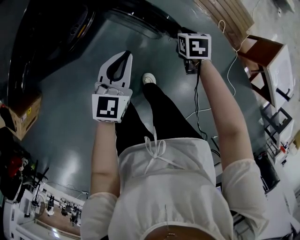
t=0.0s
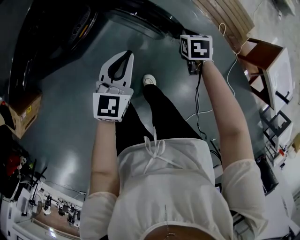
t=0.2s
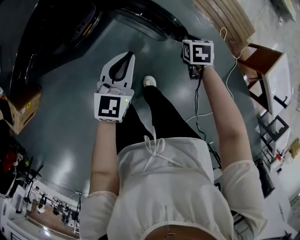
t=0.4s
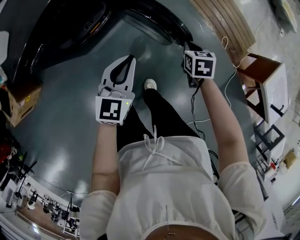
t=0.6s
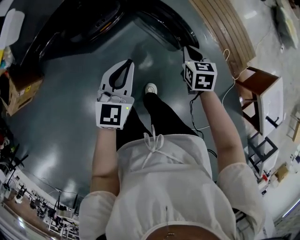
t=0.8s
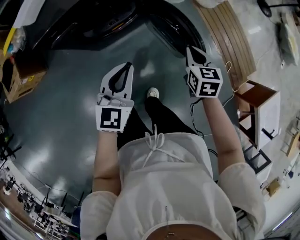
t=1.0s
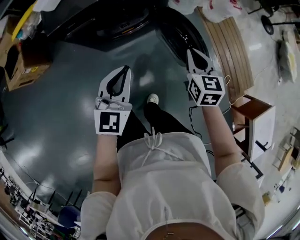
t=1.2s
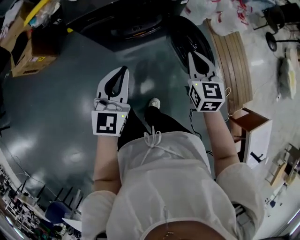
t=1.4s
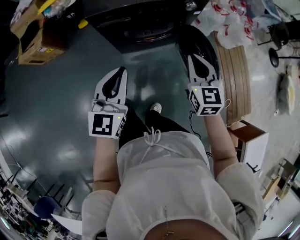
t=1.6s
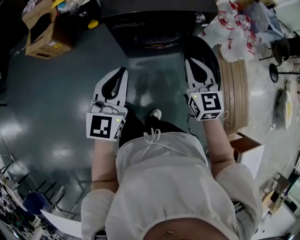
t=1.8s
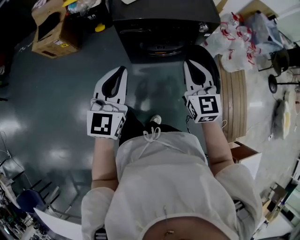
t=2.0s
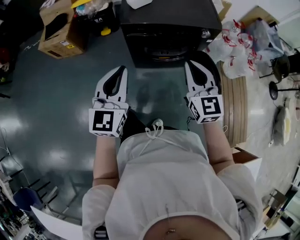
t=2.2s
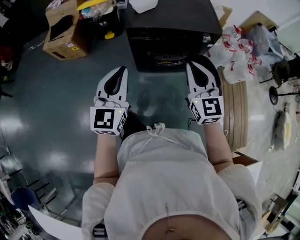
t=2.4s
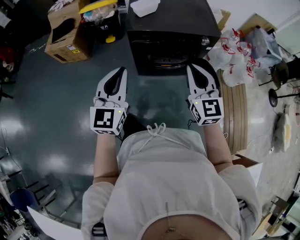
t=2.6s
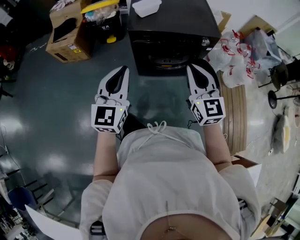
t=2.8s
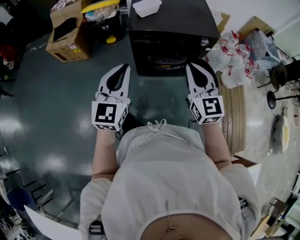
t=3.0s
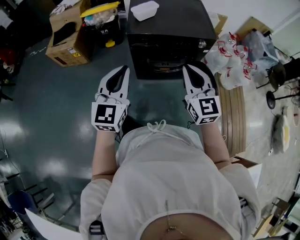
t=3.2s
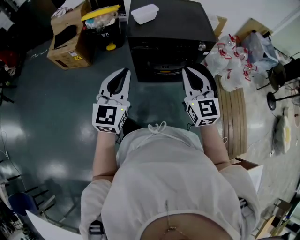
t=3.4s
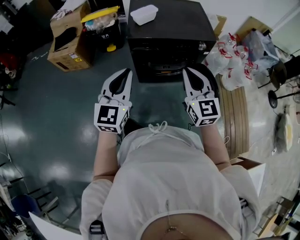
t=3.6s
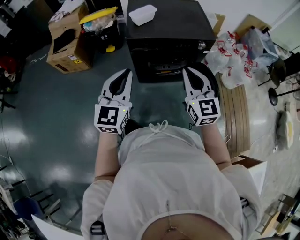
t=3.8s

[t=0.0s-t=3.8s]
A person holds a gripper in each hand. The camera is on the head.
t=0.0s to t=1.2s: The right gripper heads upward and to the left, covering roughly 30 cm, and tips its fingers upward by some 30 degrees. The left gripper goes roughly 25 cm to the left, upward and backward, and rotates roughly 30 degrees.
t=1.2s to t=2.6s: The right gripper is displaced upward by approximately 25 cm, and rotates some 40 degrees. The left gripper shifts by some 30 cm, and rotates some 30 degrees.
t=2.6s to t=3.8s: There are only small adjustments of the grippers.

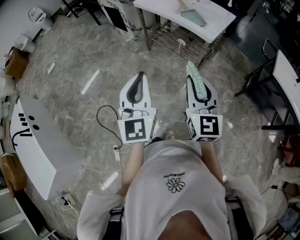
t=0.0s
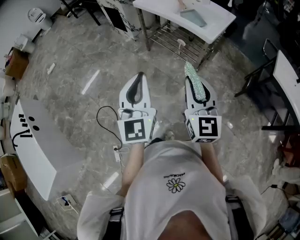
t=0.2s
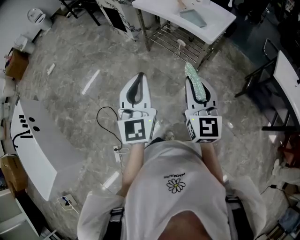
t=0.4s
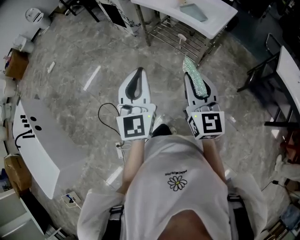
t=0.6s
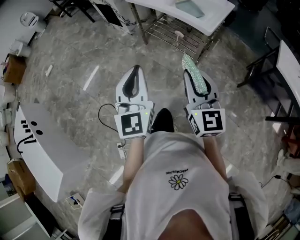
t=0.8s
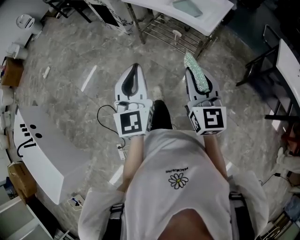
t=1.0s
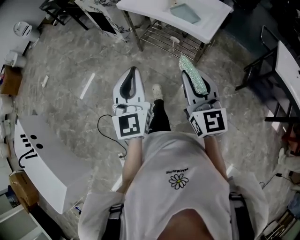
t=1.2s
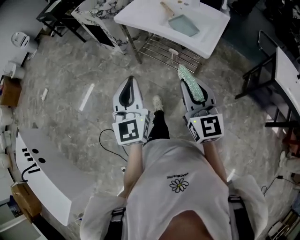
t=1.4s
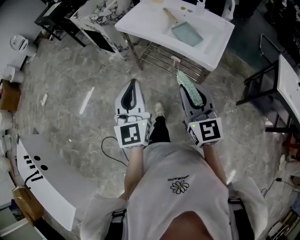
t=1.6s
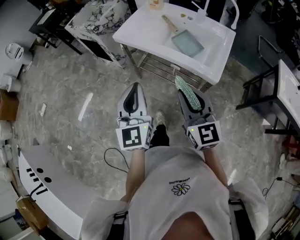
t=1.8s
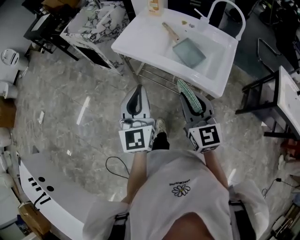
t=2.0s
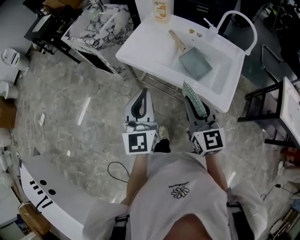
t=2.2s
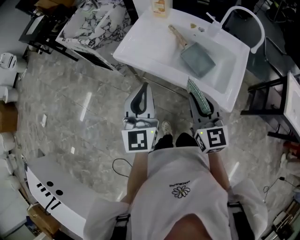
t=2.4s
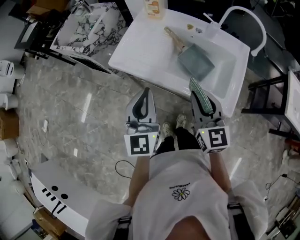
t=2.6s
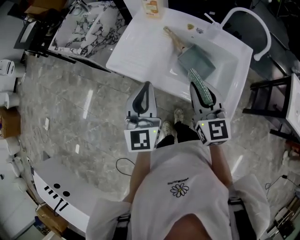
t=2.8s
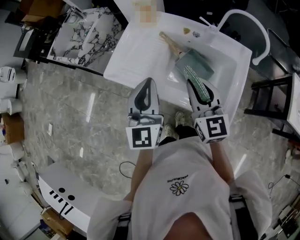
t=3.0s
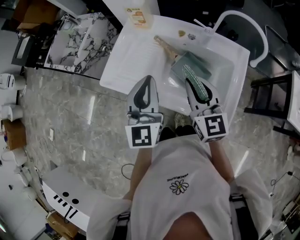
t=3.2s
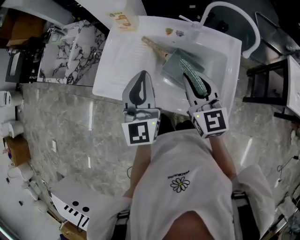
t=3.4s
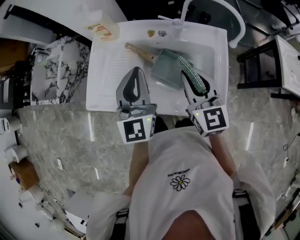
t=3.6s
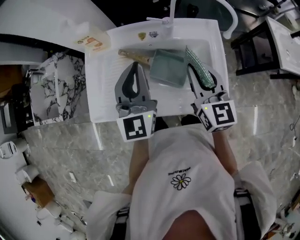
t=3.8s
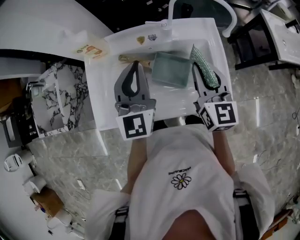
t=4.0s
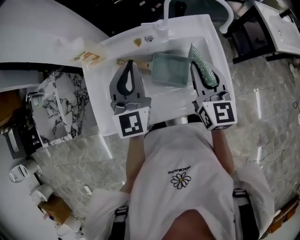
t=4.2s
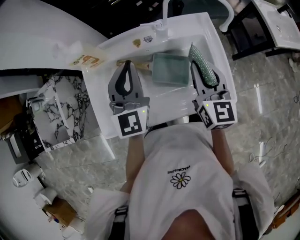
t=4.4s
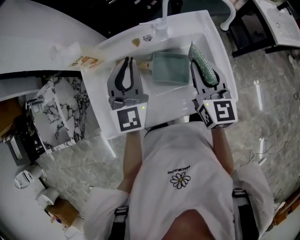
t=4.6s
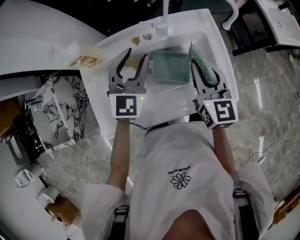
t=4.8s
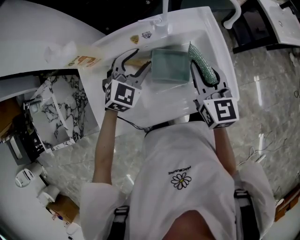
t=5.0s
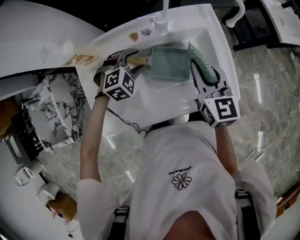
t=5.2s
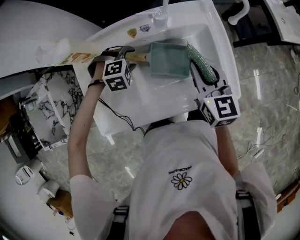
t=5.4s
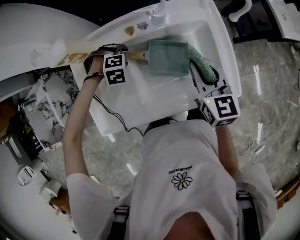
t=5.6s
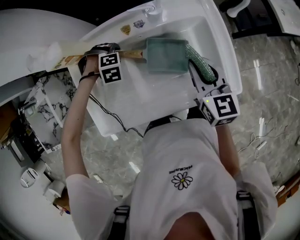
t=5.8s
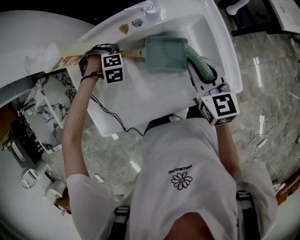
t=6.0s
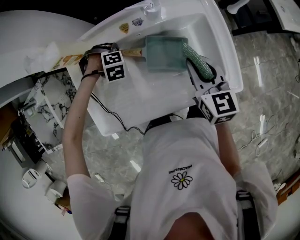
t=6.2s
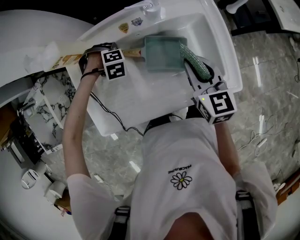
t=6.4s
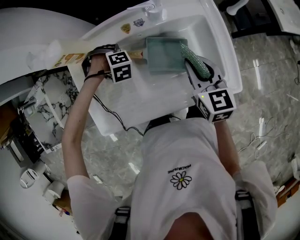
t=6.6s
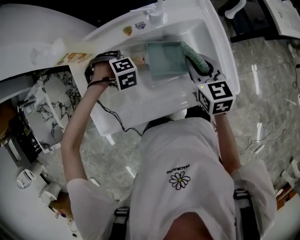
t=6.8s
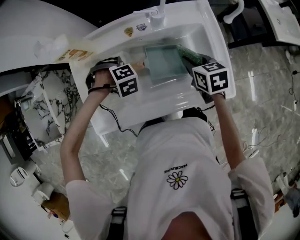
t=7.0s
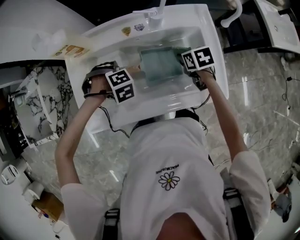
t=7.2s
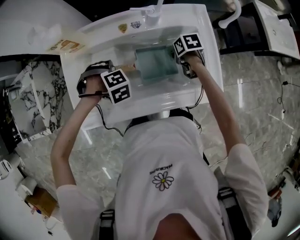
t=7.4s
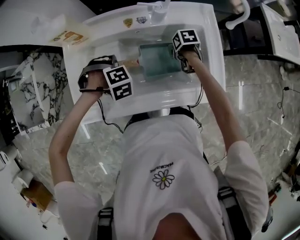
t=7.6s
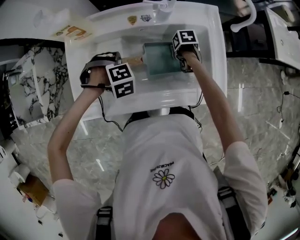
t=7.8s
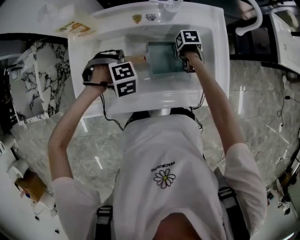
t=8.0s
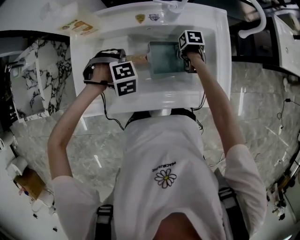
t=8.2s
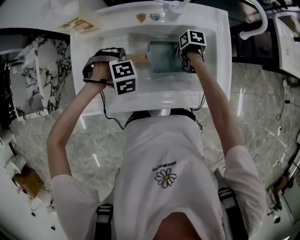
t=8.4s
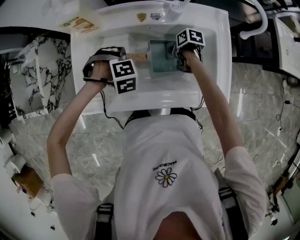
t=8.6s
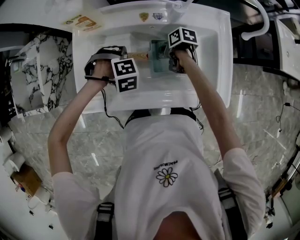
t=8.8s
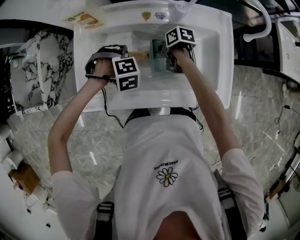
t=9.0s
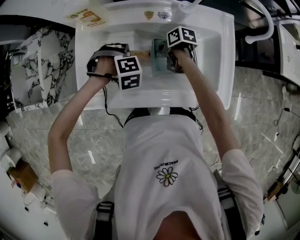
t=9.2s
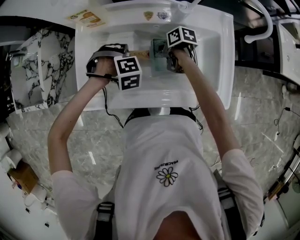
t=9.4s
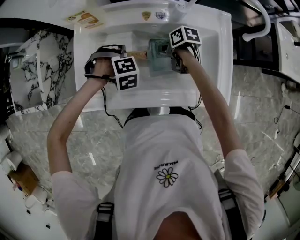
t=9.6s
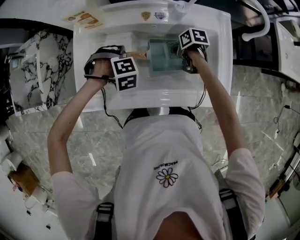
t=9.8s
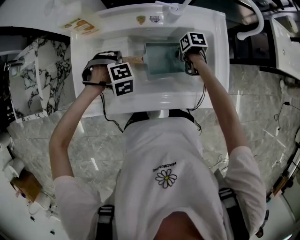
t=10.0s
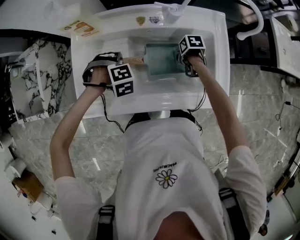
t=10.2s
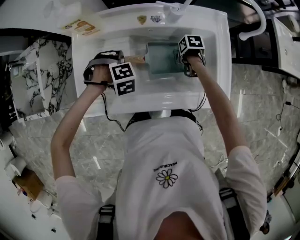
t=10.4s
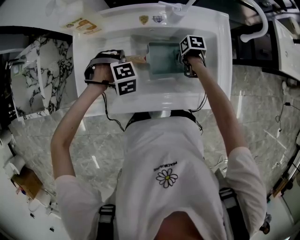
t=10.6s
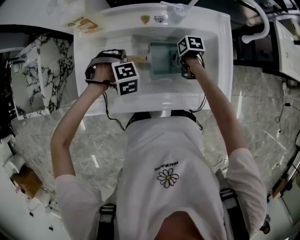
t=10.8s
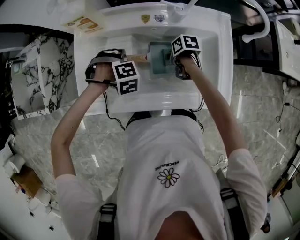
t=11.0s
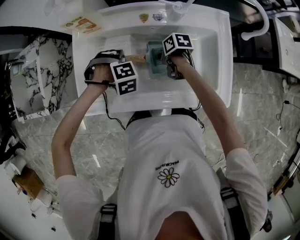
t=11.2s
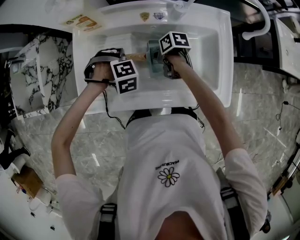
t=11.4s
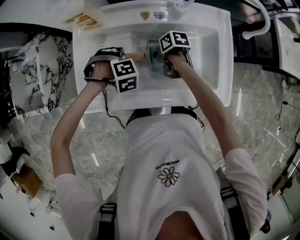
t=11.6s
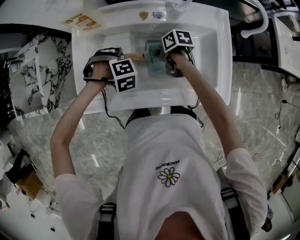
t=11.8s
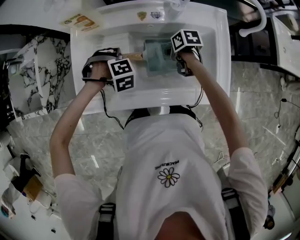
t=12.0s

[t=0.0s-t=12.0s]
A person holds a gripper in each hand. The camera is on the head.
t=0.0s to t=1.6s: Both grippers travel together forward, about 30 cm.
t=1.6s to t=3.0s: Both grippers are carried forward, approximately 40 cm.
t=3.0s to t=4.4s: The right gripper ends up about 15 cm from where it was, and turns by roughly 40 degrees; the left gripper changes place by some 20 cm, and swivels approximately 30 degrees.
t=4.4s to t=6.0s: The right gripper is displaced downward by about 10 cm; the left gripper shifts roughly 30 cm downward, angles its fingers downward, by approximately 80 degrees, and opens its fingers.
t=6.0s to t=7.6s: The left gripper changes place by some 10 cm, swivels roughly 20 degrees, and closes its fingers, while the right gripper goes approximately 25 cm downward, and points its fingers some 50 degrees further downward.
t=7.6s to t=9.0s: The right gripper shifts by some 15 cm, and rotates some 20 degrees.
t=9.0s to t=10.4s: The right gripper moves about 15 cm, and turns by roughly 20 degrees.

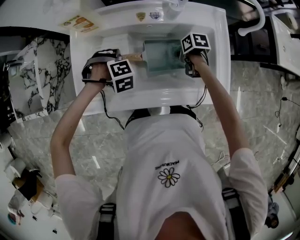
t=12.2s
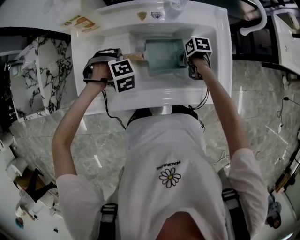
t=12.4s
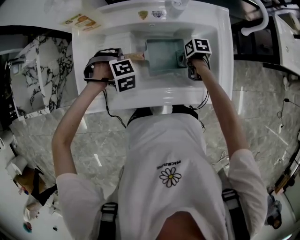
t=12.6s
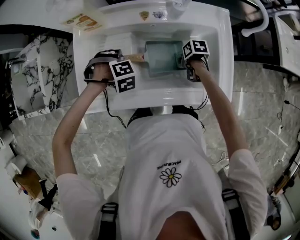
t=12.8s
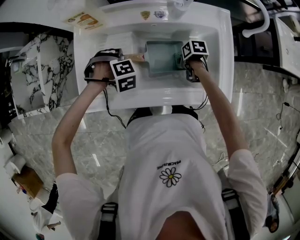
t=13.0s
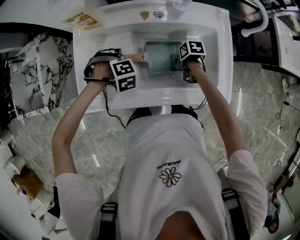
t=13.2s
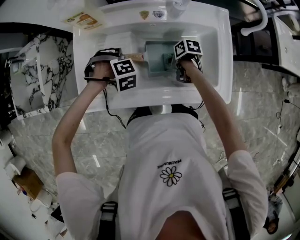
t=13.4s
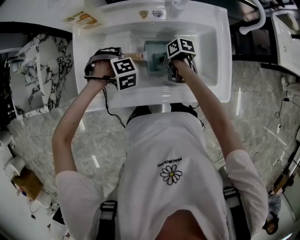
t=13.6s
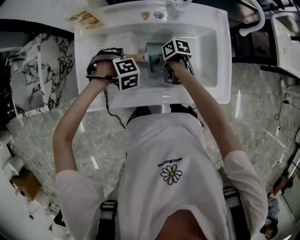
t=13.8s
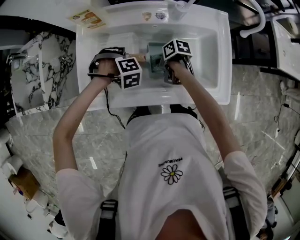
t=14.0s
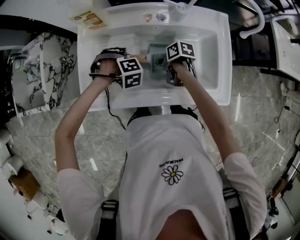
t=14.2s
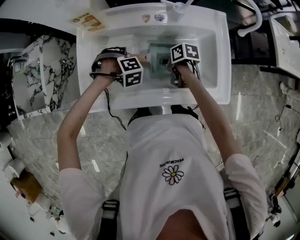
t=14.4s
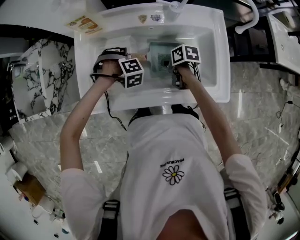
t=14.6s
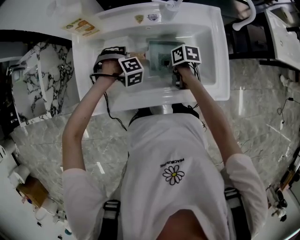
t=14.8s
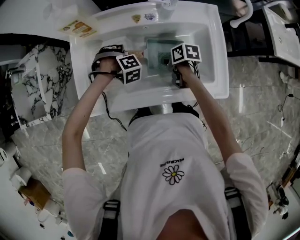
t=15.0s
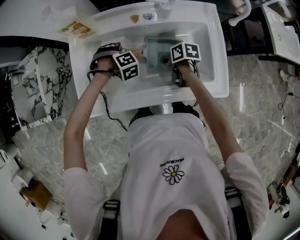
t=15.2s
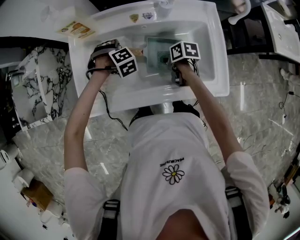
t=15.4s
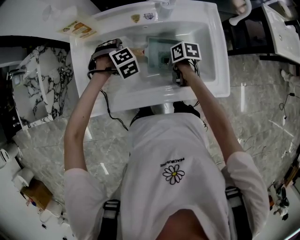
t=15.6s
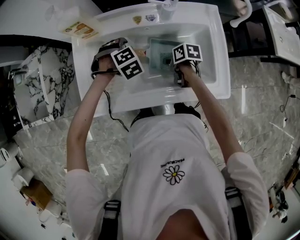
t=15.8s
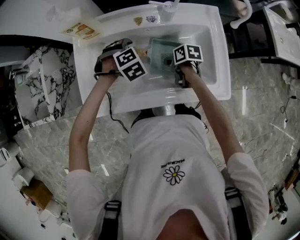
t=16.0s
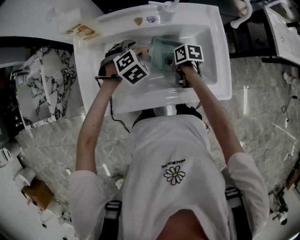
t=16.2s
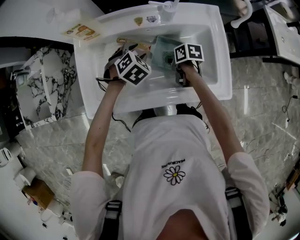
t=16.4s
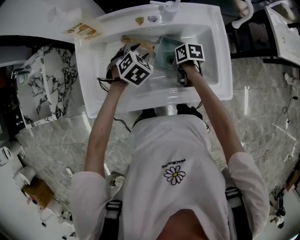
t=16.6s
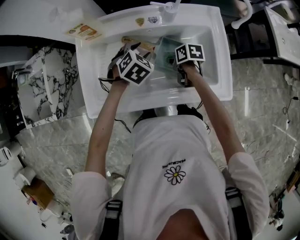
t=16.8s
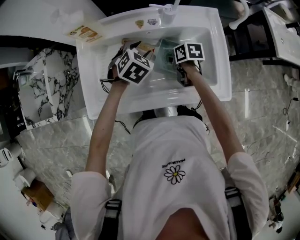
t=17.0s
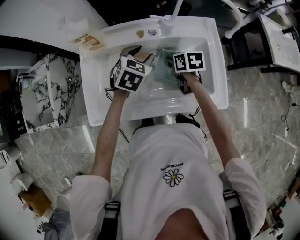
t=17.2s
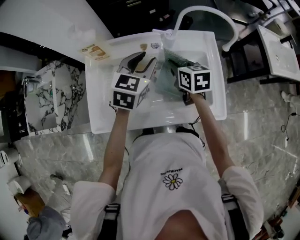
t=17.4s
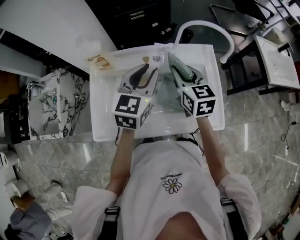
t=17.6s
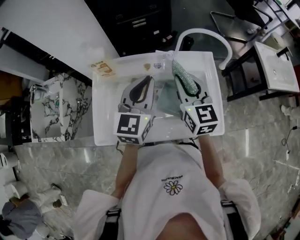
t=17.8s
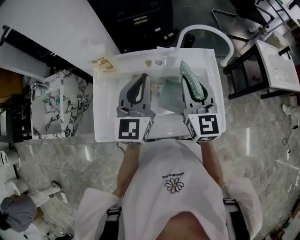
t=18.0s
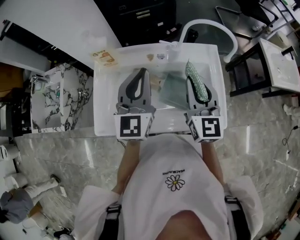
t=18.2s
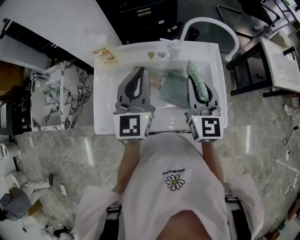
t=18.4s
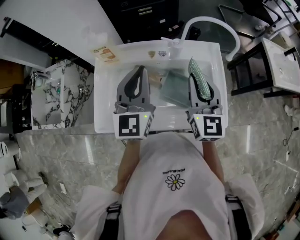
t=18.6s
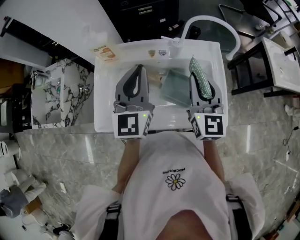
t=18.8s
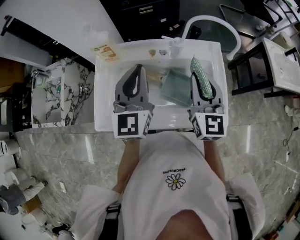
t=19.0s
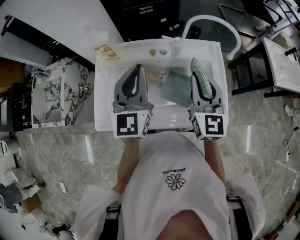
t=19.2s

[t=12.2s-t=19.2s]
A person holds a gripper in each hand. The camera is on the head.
t=12.2s to t=13.6s: The right gripper ends up some 10 cm from where it was.
t=13.6s to t=15.0s: There are only small adjustments of the grippers.
t=15.0s to t=16.4s: The left gripper ends up some 10 cm from where it was, and changes its angle by some 50 degrees.
t=16.4s to t=17.8s: The two grippers go some 30 cm upward. The right gripper tilts its fingers approximately 40 degrees upward. The left gripper angles its fingers upward, by some 50 degrees, and closes.
t=17.8s to t=19.2s: The right gripper ends up about 5 cm from where it was. Meanwhile the left gripper moves roughly 5 cm.

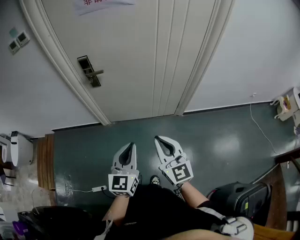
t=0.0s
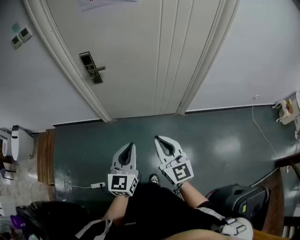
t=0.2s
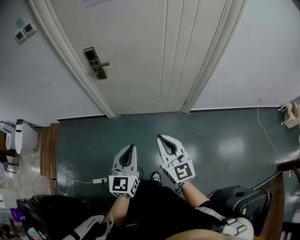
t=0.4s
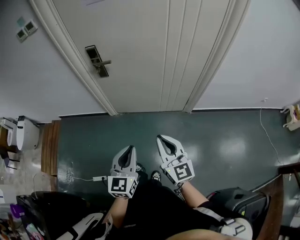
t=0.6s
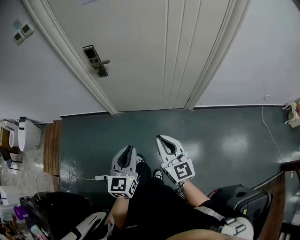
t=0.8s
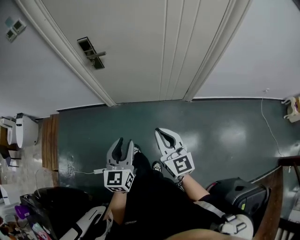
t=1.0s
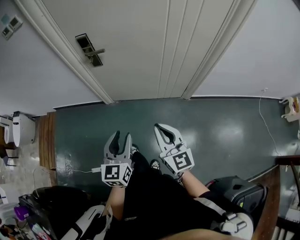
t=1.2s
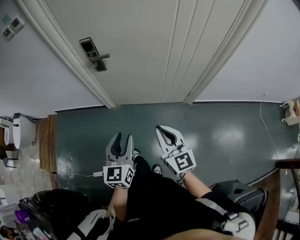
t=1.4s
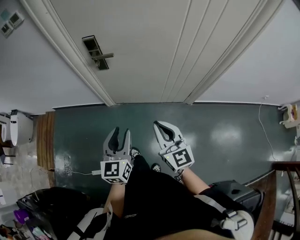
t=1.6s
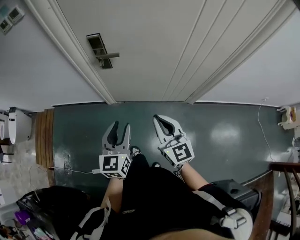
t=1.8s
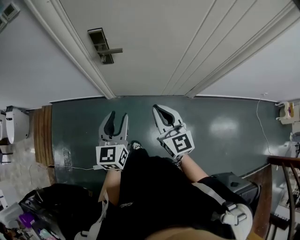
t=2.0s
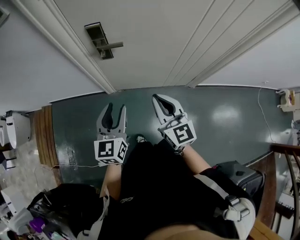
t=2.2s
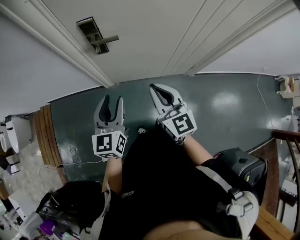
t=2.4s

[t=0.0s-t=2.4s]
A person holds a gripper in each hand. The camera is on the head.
t=0.0s to t=1.2s: Both grippers move forward and downward, about 10 cm. The left gripper opens its fingers.
t=1.2s to t=2.4s: Both grippers move forward and to the left, roughly 25 cm.
